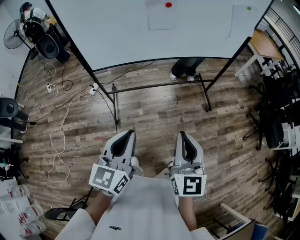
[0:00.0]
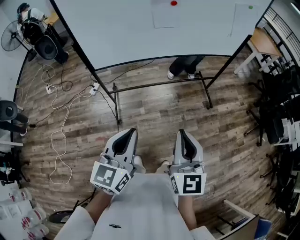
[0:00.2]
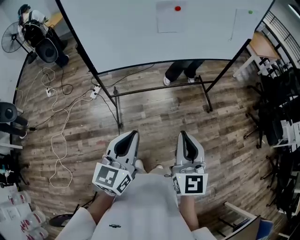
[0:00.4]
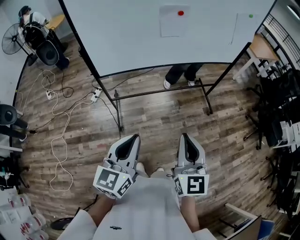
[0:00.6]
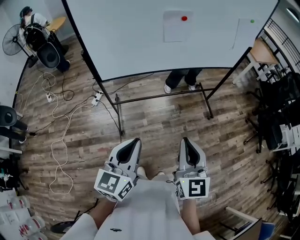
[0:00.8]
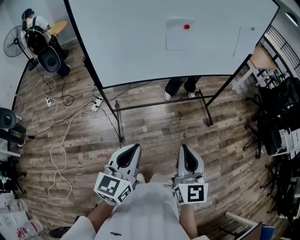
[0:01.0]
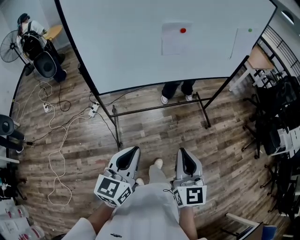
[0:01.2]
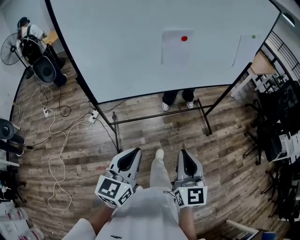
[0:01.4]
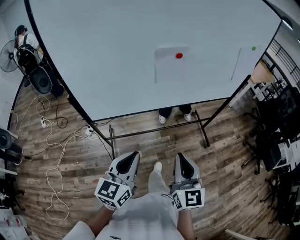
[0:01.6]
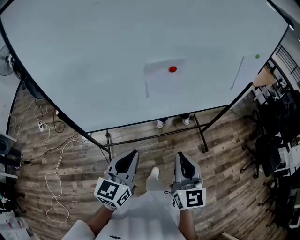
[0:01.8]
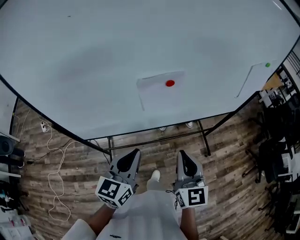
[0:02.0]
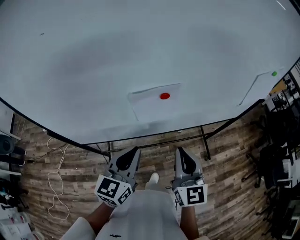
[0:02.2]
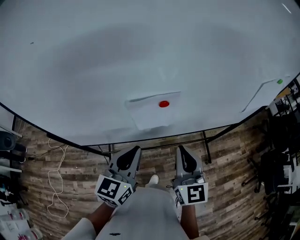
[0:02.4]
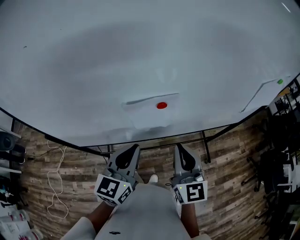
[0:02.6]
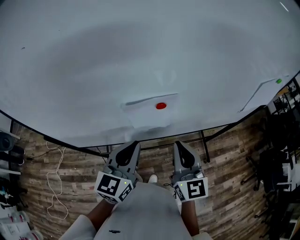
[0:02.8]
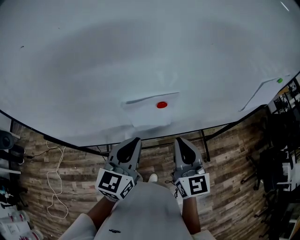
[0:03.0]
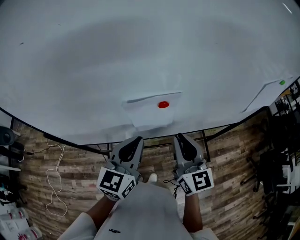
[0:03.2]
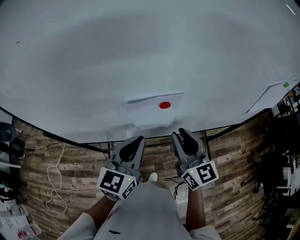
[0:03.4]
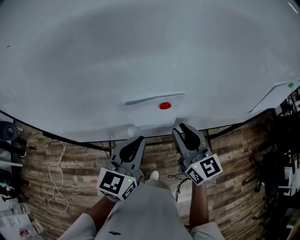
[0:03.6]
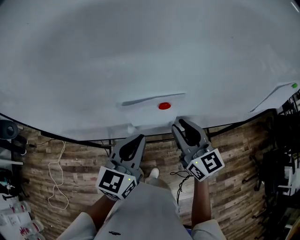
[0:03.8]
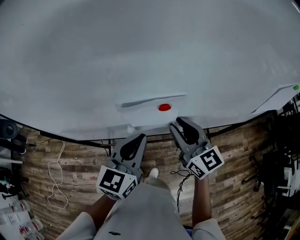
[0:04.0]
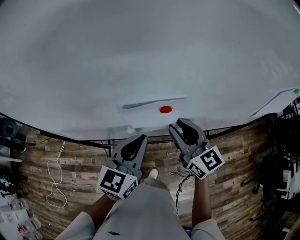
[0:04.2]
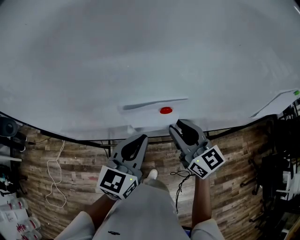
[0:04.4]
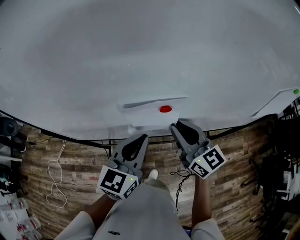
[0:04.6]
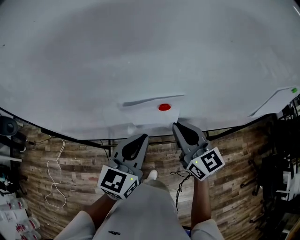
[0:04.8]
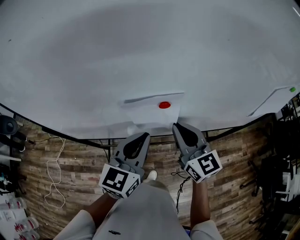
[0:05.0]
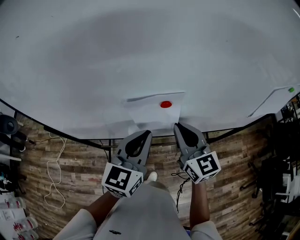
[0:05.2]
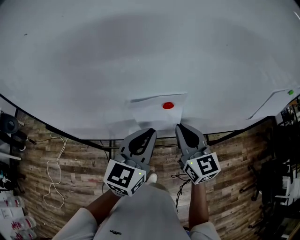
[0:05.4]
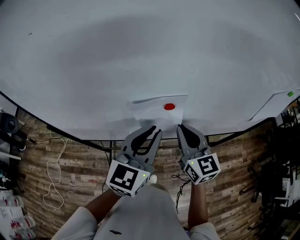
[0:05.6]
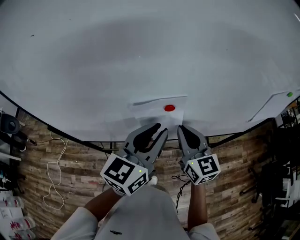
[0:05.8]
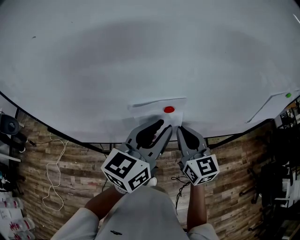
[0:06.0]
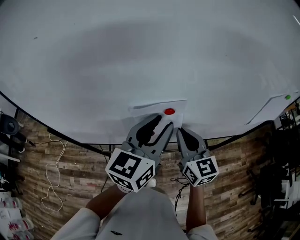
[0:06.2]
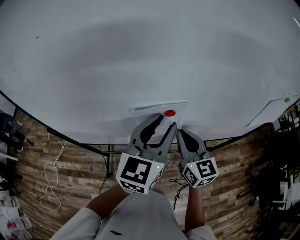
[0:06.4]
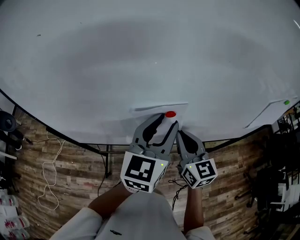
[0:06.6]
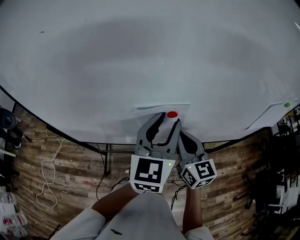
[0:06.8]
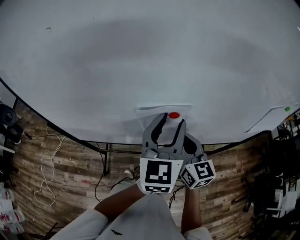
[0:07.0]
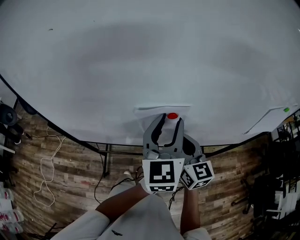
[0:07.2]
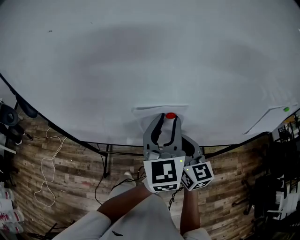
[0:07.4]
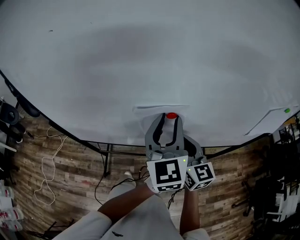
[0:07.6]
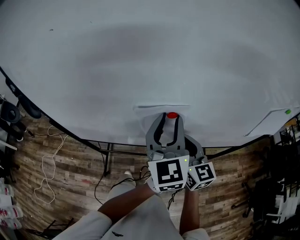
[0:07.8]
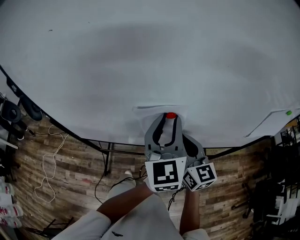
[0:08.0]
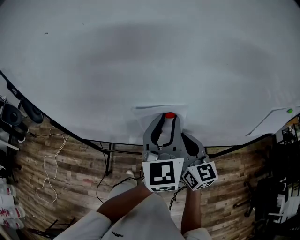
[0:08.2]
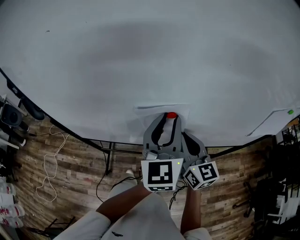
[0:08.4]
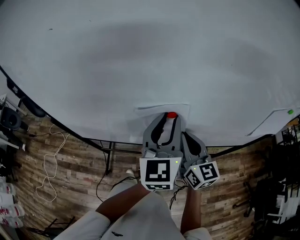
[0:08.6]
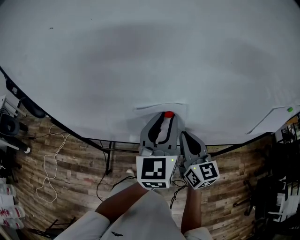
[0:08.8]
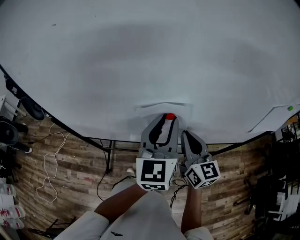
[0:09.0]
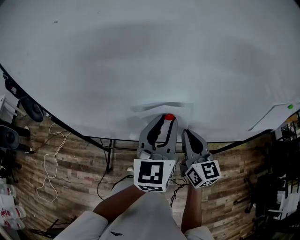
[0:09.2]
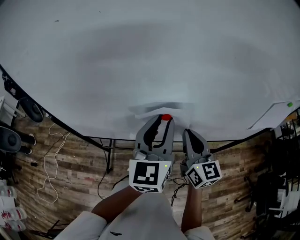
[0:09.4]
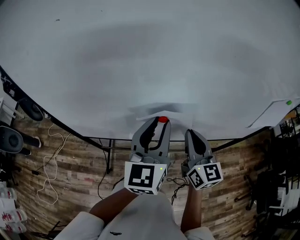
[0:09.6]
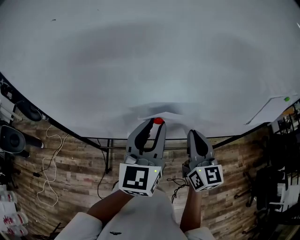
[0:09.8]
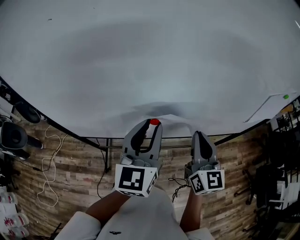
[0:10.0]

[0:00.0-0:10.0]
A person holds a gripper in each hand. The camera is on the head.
0:00.0 to 0:01.4: The two grippers go about 15 cm forward and to the left.
0:01.4 to 0:02.8: The two grippers go about 35 cm forward.
0:02.8 to 0:04.2: The right gripper goes about 10 cm forward, rotates roughly 30 degrees, and opens its fingers.
0:04.2 to 0:05.8: The left gripper shifts approximately 5 cm upward; the right gripper closes.
0:05.8 to 0:07.2: The left gripper ends up roughly 5 cm from where it was, changes its angle by roughly 30 degrees, and opens up.
0:07.2 to 0:08.6: The grippers make only small movements.
0:08.6 to 0:10.0: The right gripper changes place by approximately 5 cm. The left gripper shifts about 5 cm to the left.

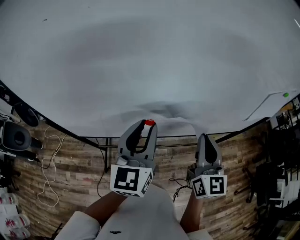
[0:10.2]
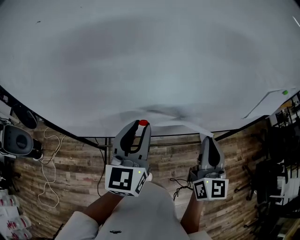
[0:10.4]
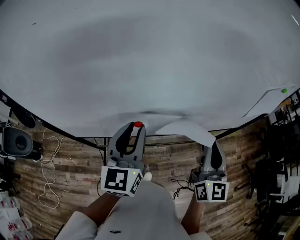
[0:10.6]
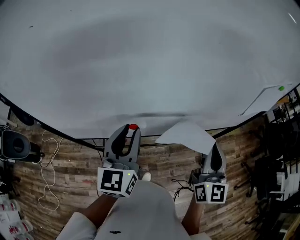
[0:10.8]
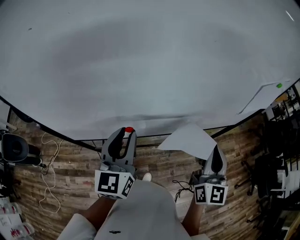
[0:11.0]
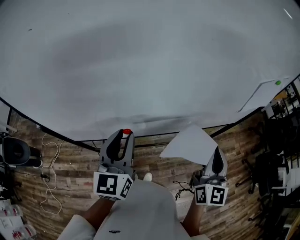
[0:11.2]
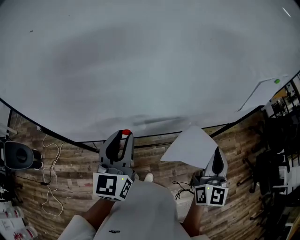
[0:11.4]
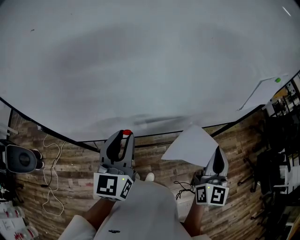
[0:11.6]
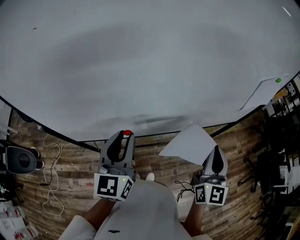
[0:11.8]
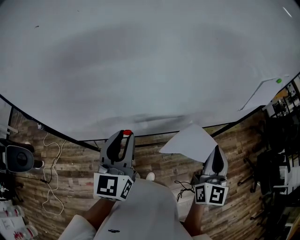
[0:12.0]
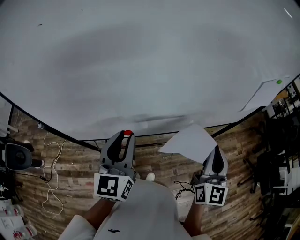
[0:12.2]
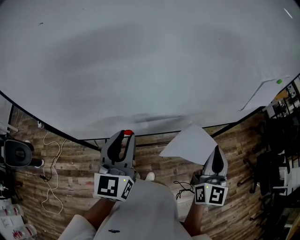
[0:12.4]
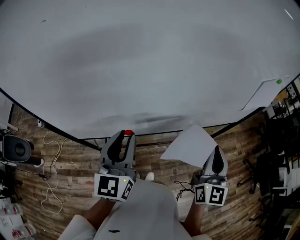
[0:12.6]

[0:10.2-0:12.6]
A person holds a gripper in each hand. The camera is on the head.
0:10.2 to 0:11.4: The right gripper is displaced to the right and backward by about 10 cm. The left gripper changes place by some 5 cm.
0:11.4 to 0:12.6: There are only small adjustments of the grippers.

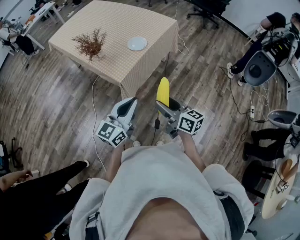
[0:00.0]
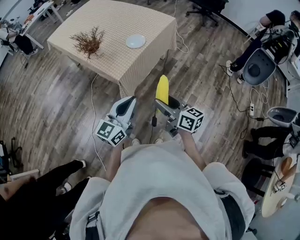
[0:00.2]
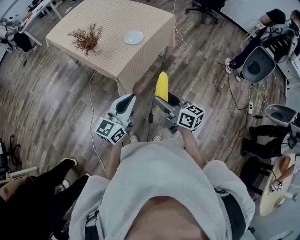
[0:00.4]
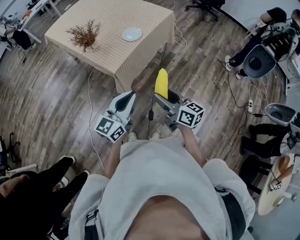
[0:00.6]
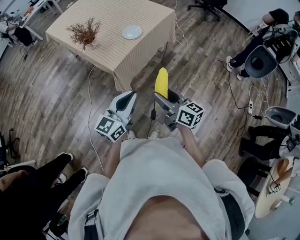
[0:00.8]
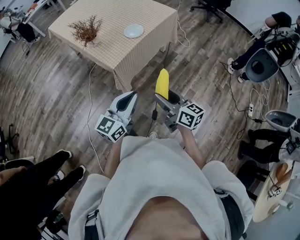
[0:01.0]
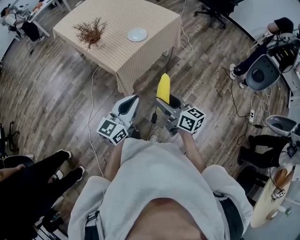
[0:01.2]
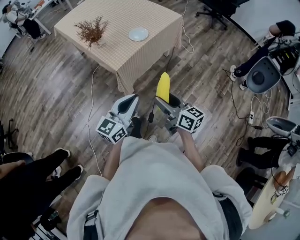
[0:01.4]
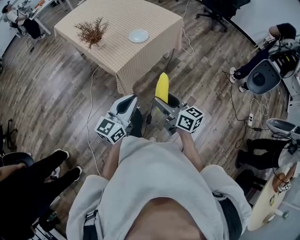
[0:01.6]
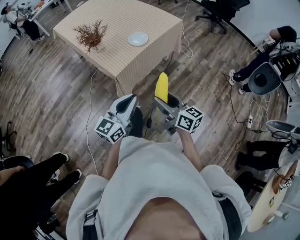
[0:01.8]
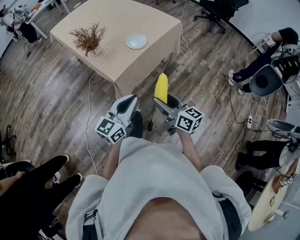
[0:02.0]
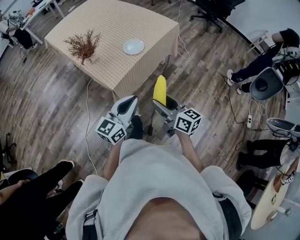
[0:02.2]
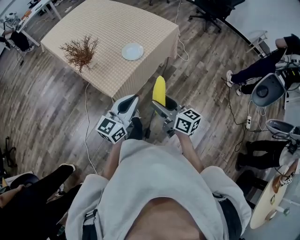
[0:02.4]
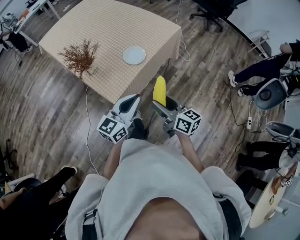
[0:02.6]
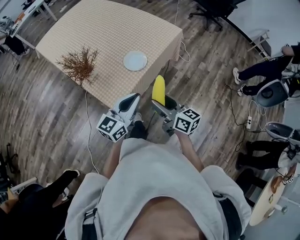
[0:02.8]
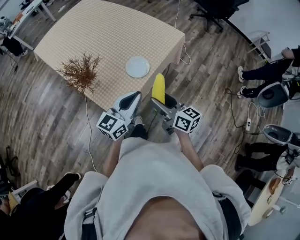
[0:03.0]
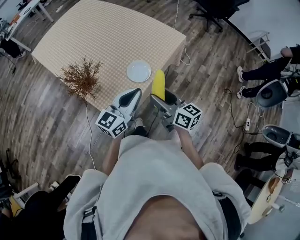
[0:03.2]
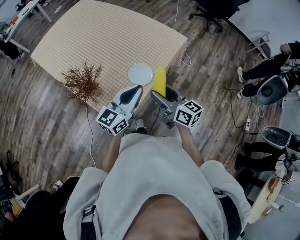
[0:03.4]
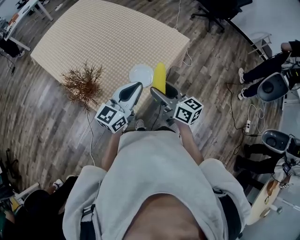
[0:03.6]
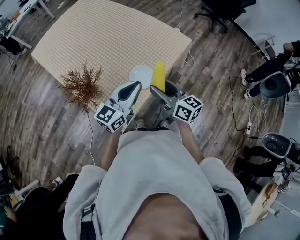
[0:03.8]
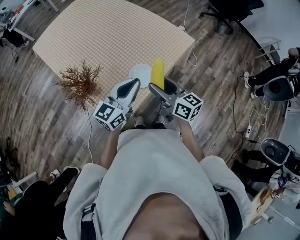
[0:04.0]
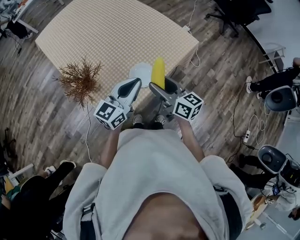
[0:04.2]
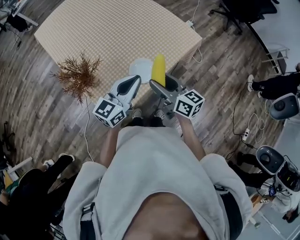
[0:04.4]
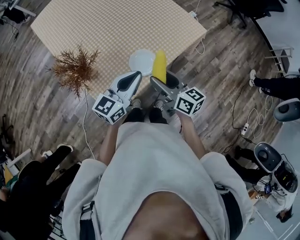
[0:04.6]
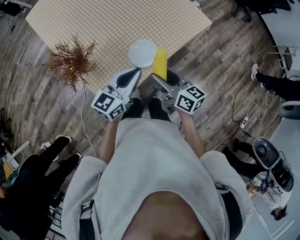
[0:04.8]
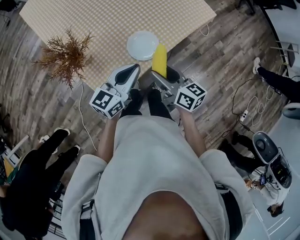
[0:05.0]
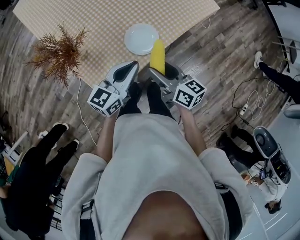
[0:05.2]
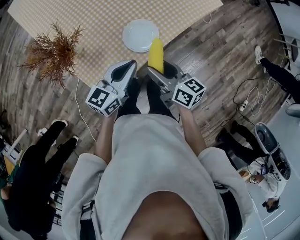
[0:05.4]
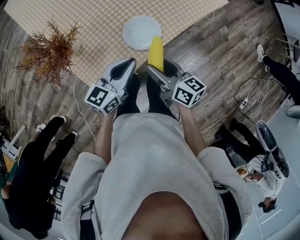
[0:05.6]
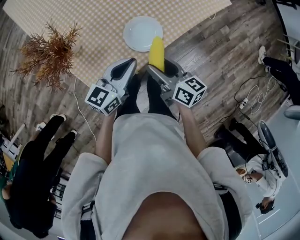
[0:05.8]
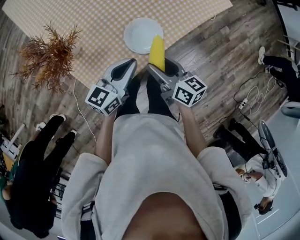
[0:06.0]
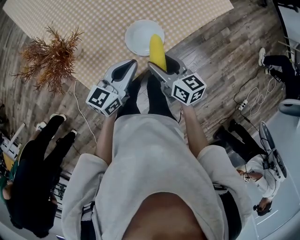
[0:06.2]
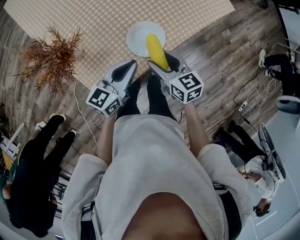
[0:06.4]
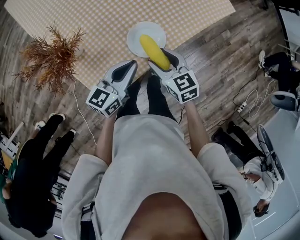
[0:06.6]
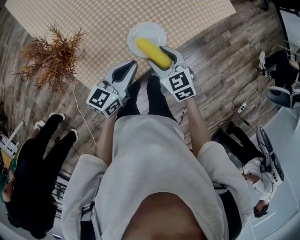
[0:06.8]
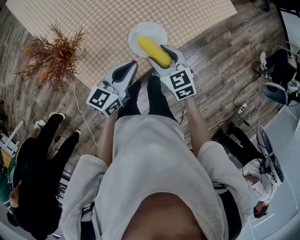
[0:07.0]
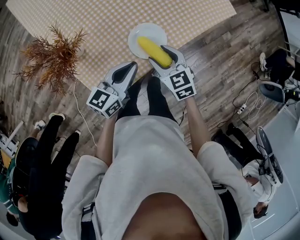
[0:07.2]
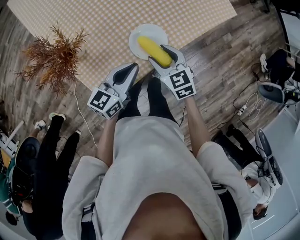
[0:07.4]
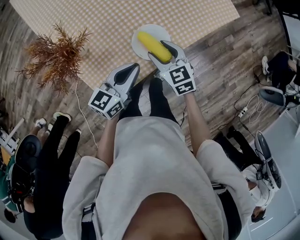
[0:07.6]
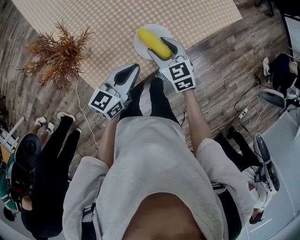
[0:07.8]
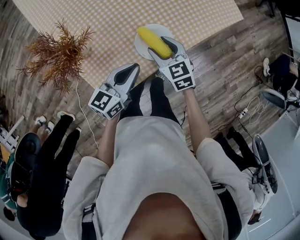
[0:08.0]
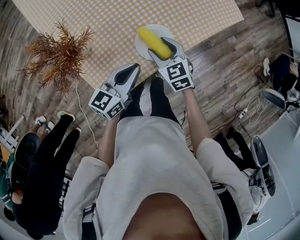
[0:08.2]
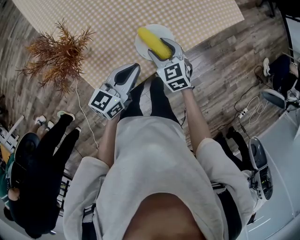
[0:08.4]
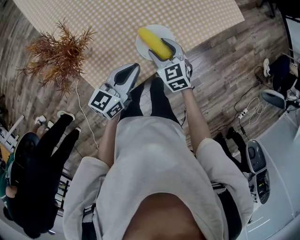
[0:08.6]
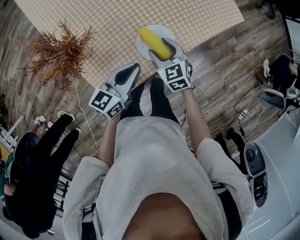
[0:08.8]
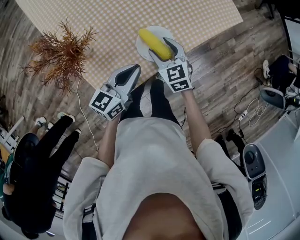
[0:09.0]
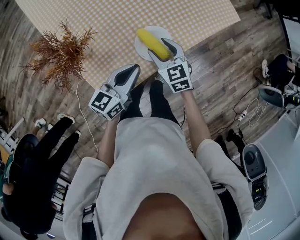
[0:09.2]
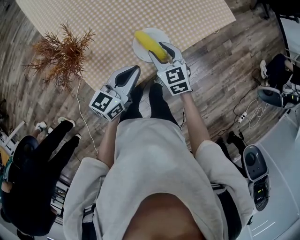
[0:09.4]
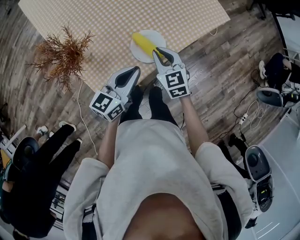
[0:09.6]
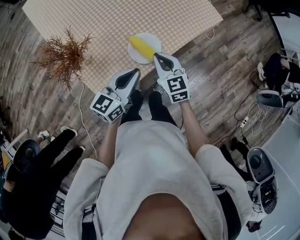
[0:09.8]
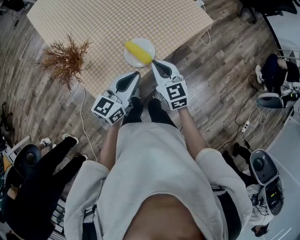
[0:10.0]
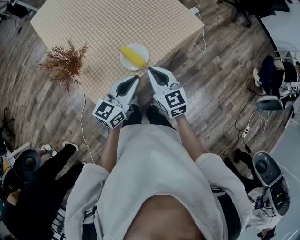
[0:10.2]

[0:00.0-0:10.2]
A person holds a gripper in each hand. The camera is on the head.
0:00.0 to 0:01.4: The left gripper moves approximately 5 cm.
0:01.4 to 0:03.0: Both grippers move forward, some 35 cm.
0:03.0 to 0:04.4: The grippers both shift forward by approximately 15 cm.
0:04.4 to 0:05.8: The two grippers go about 15 cm downward. The right gripper swivels about 20 degrees. The left gripper swivels roughly 20 degrees.
0:05.8 to 0:07.2: The right gripper goes approximately 5 cm forward, and rolls counterclockwise, seen from behind, by roughly 40 degrees.
0:07.2 to 0:08.8: The right gripper moves about 5 cm.
0:08.8 to 0:10.2: The right gripper goes some 20 cm upward, backward and to the right, rotates some 30 degrees, and closes; the left gripper travels upward, to the right and backward by approximately 15 cm.

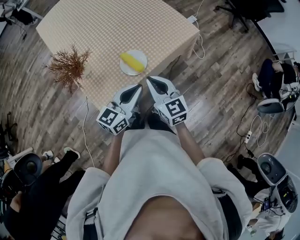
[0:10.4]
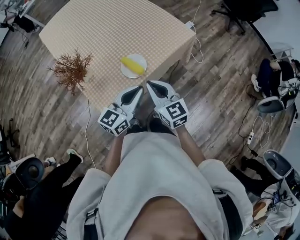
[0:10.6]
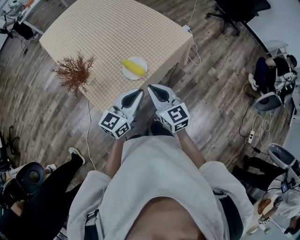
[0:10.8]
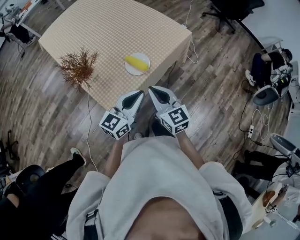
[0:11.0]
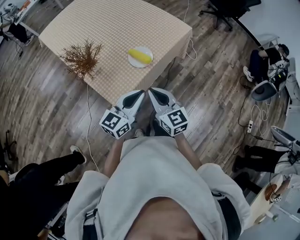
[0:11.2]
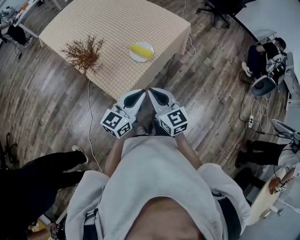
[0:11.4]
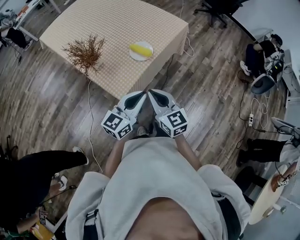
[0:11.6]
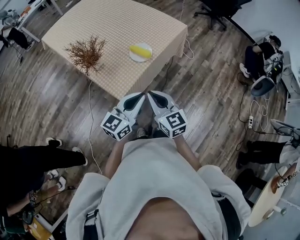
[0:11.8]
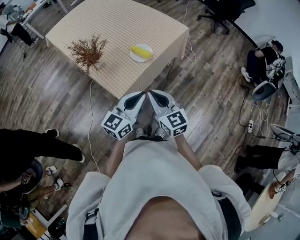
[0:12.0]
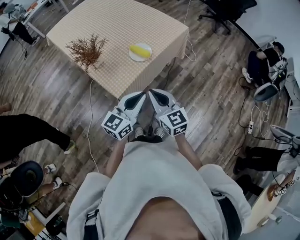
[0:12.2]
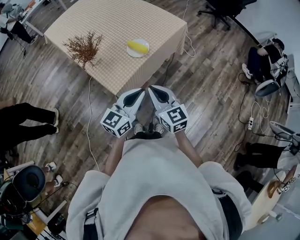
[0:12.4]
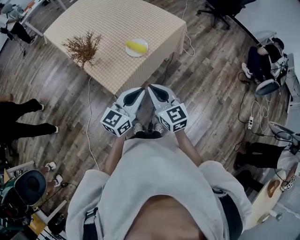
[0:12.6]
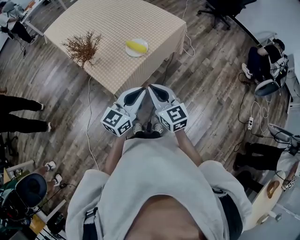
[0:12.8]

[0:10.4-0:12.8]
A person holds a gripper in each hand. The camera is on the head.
0:10.4 to 0:11.6: The two grippers go some 20 cm backward.
0:11.6 to 0:12.8: Both grippers move to the right, about 5 cm.
